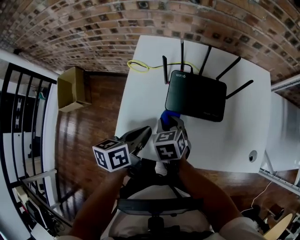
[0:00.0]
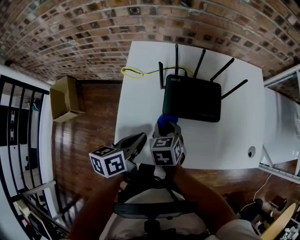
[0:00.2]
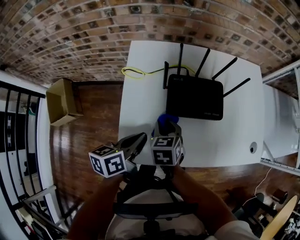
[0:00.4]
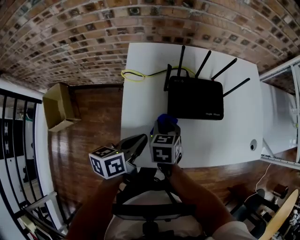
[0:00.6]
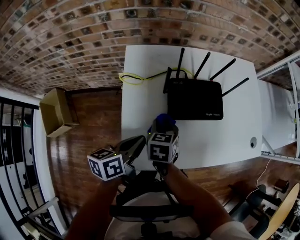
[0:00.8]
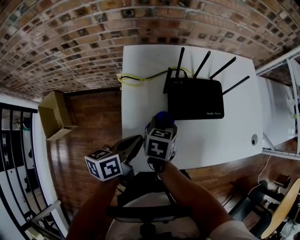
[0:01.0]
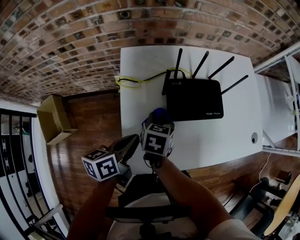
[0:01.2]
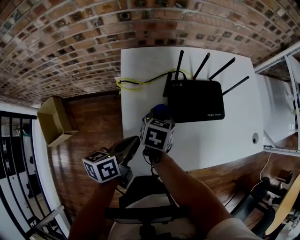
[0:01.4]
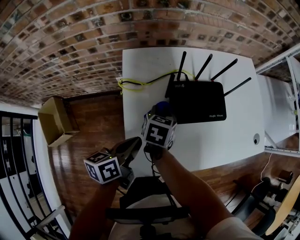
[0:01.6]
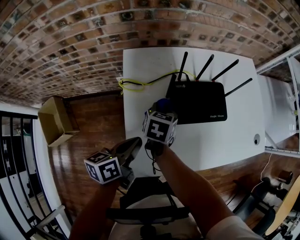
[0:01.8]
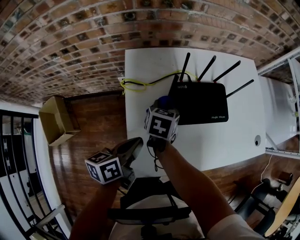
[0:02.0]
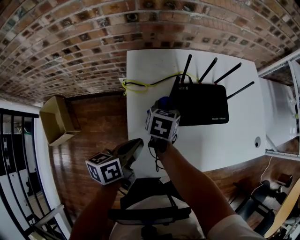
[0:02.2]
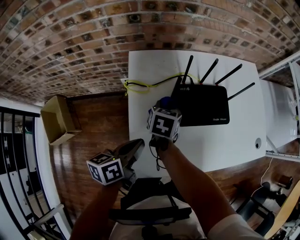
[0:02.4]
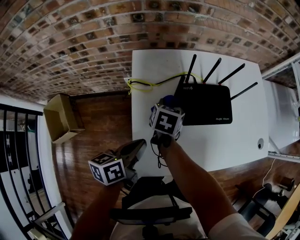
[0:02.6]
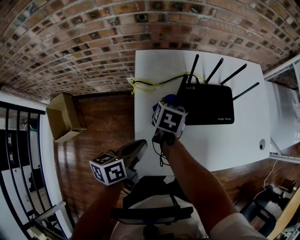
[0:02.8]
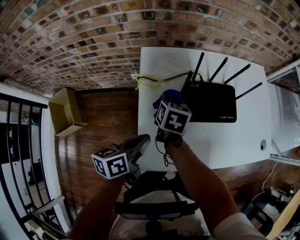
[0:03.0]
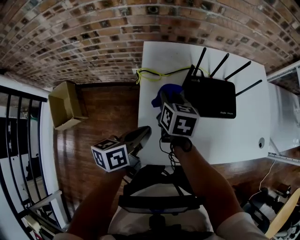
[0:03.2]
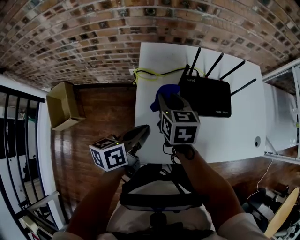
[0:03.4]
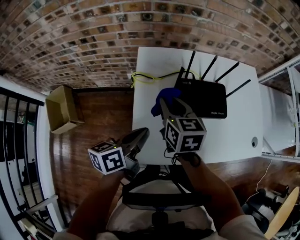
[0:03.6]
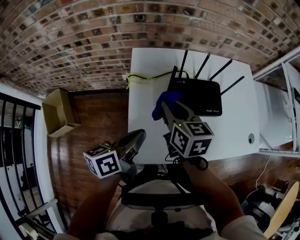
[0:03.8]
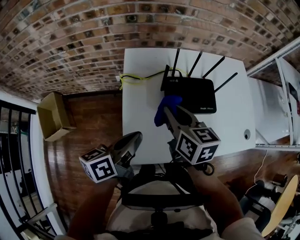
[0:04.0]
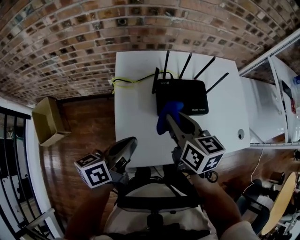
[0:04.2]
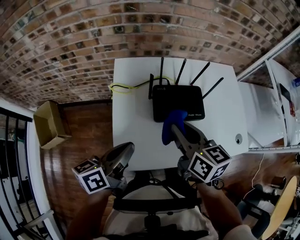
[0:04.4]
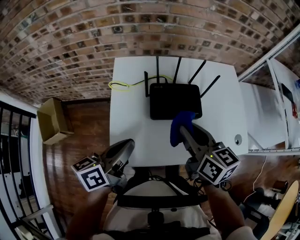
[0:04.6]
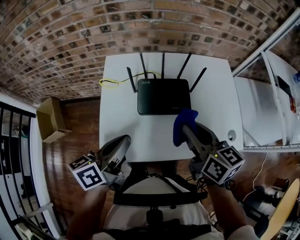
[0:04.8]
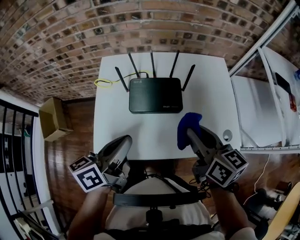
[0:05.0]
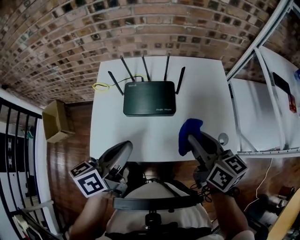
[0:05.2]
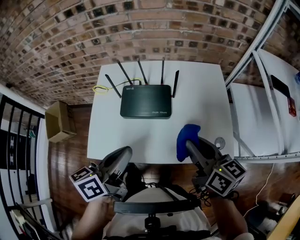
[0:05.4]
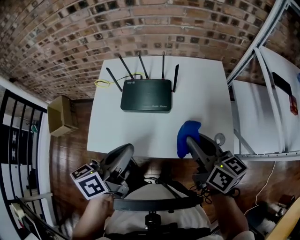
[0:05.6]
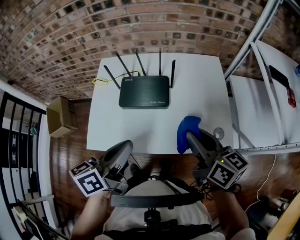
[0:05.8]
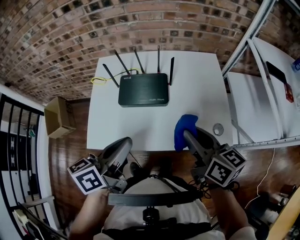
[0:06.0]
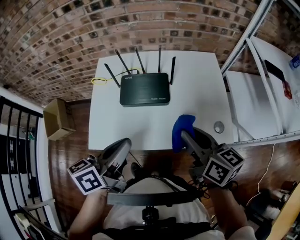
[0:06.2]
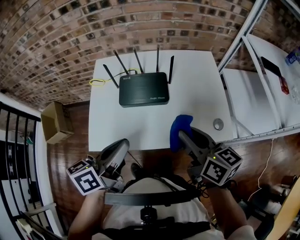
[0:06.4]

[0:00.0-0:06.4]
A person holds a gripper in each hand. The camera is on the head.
0:00.0 to 0:01.6: The right gripper moves roughly 15 cm, and changes its angle by some 50 degrees; the left gripper changes place by some 10 cm.
0:01.6 to 0:03.2: The right gripper heads upward, covering roughly 5 cm, and swivels some 20 degrees.
0:03.2 to 0:04.8: The right gripper goes about 35 cm to the right and upward. The left gripper travels to the right and upward by approximately 20 cm.
0:04.8 to 0:06.4: Both grippers travel together to the right and backward, roughly 15 cm.

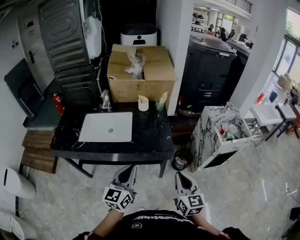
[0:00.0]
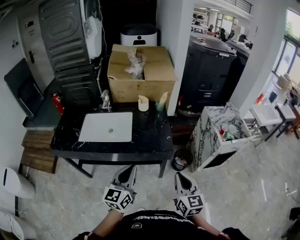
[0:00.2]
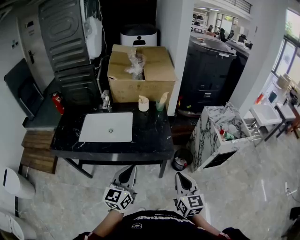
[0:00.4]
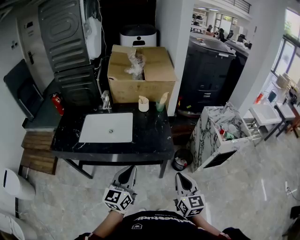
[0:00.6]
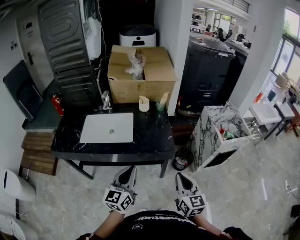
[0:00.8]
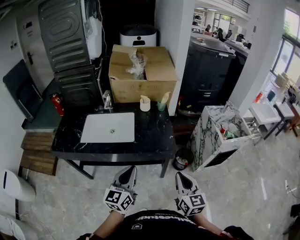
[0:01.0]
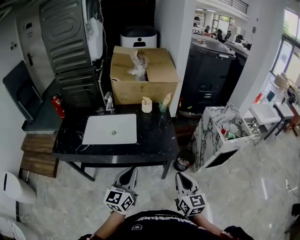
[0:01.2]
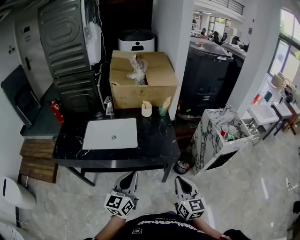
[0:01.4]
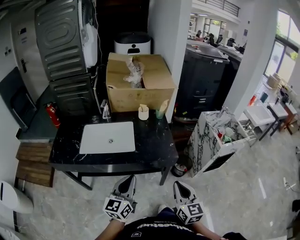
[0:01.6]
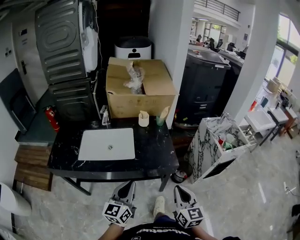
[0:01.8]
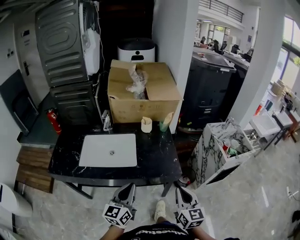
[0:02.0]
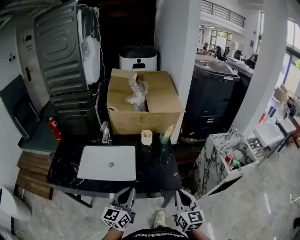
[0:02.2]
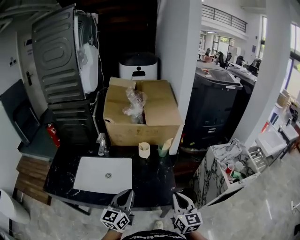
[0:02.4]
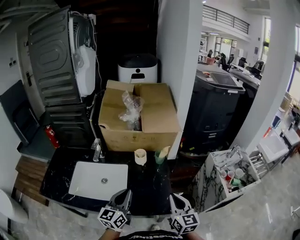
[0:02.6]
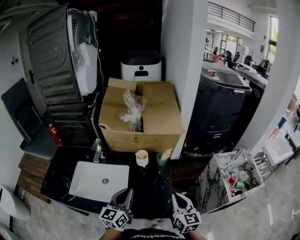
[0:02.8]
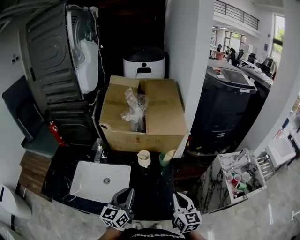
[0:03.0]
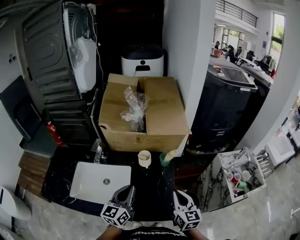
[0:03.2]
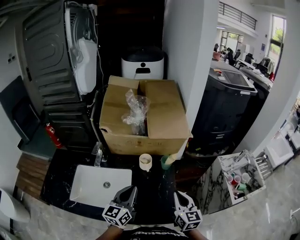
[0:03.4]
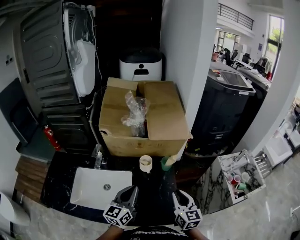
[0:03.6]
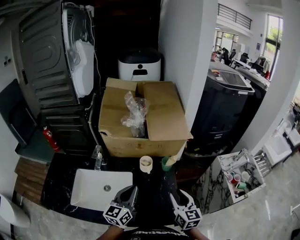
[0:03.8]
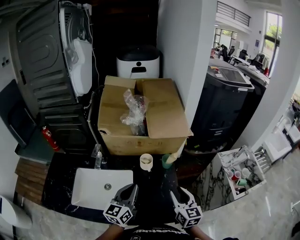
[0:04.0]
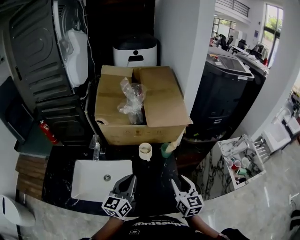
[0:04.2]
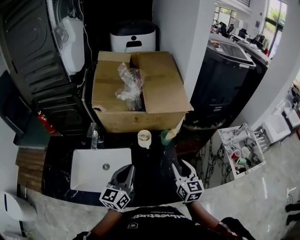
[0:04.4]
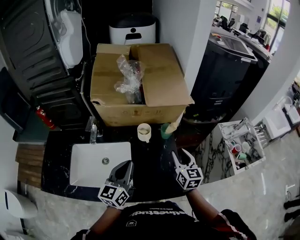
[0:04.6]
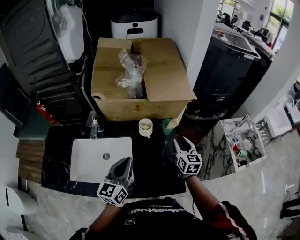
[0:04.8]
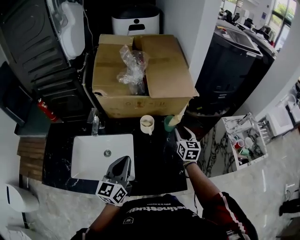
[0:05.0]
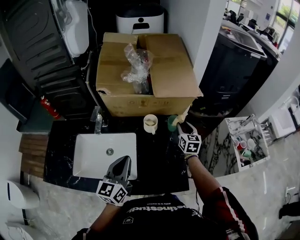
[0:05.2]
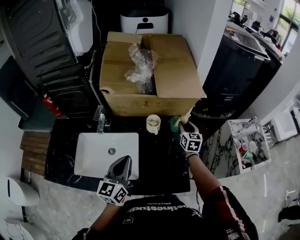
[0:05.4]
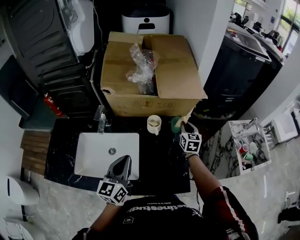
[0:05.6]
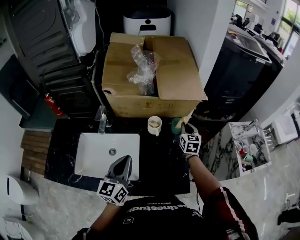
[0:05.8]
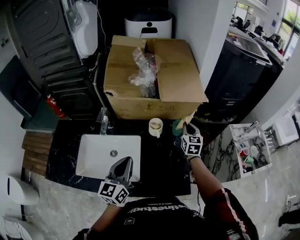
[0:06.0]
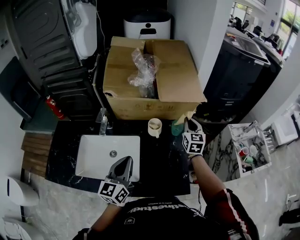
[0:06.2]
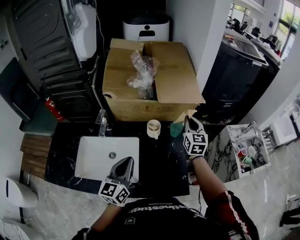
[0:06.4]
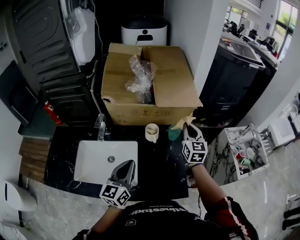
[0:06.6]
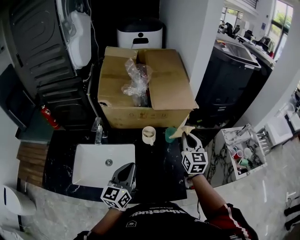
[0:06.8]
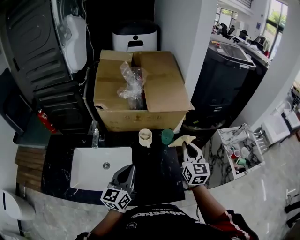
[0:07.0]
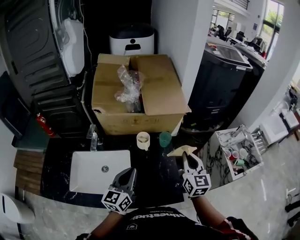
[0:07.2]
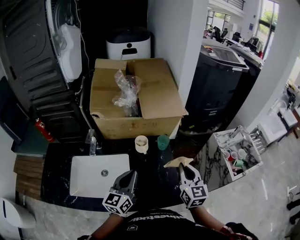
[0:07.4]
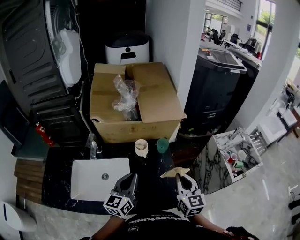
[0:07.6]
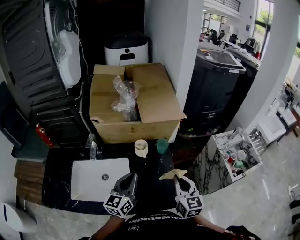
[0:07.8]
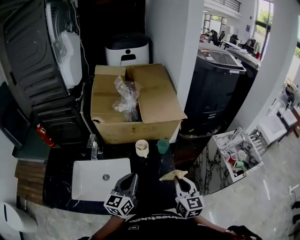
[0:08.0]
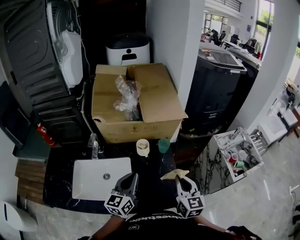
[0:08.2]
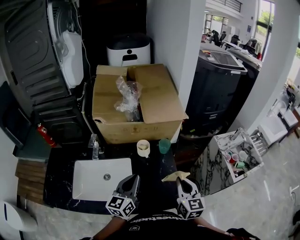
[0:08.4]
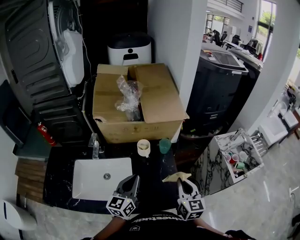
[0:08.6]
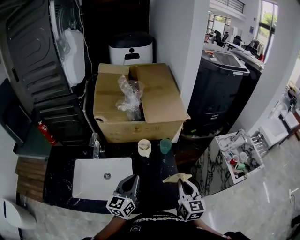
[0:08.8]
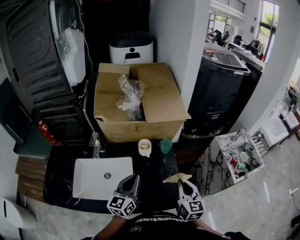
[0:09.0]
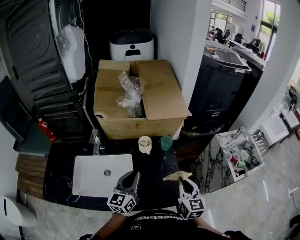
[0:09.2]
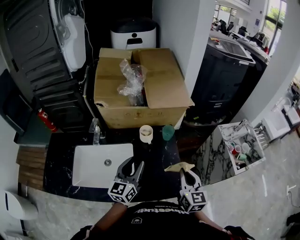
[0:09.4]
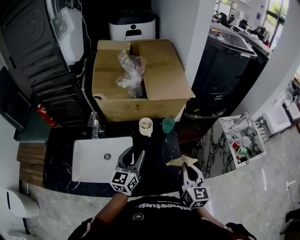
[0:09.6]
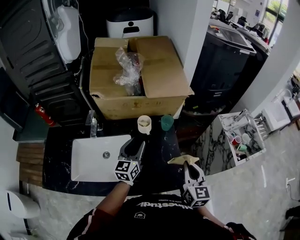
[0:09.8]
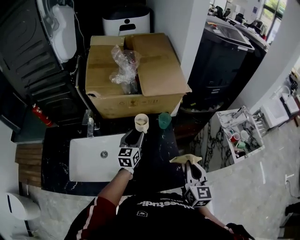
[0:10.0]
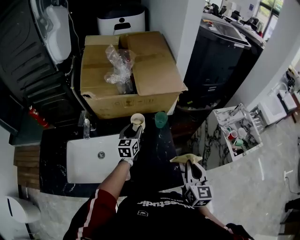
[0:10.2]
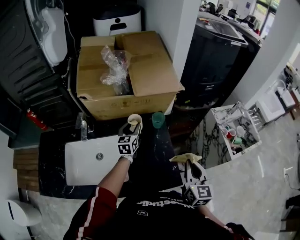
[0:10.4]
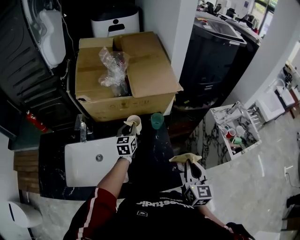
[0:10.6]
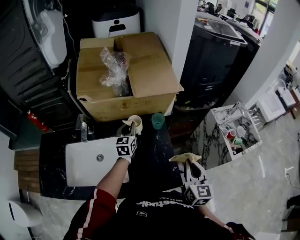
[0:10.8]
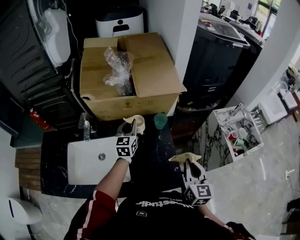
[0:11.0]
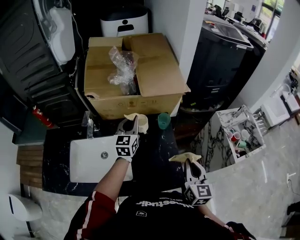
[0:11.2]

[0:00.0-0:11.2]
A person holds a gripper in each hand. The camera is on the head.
0:00.0 to 0:01.6: The two grippers go roughly 5 cm to the left.
0:01.6 to 0:03.2: The grippers both shift forward by about 35 cm.
0:03.2 to 0:04.8: The right gripper goes about 15 cm forward and downward, and opens its fingers.
0:04.8 to 0:06.4: The right gripper shifts approximately 10 cm upward and forward, and closes.
0:06.4 to 0:08.0: The left gripper moves to the right, approximately 5 cm. The right gripper moves backward, roughly 25 cm.
0:08.0 to 0:09.6: The left gripper opens its fingers.
0:09.6 to 0:11.2: The left gripper moves forward, approximately 15 cm, and closes its fingers.

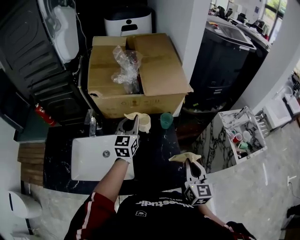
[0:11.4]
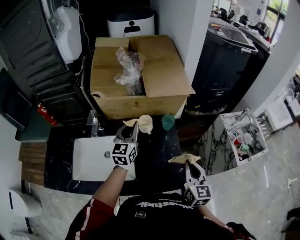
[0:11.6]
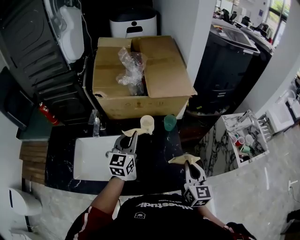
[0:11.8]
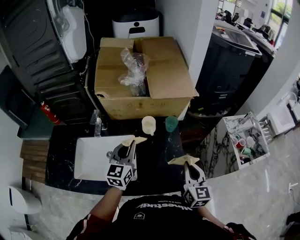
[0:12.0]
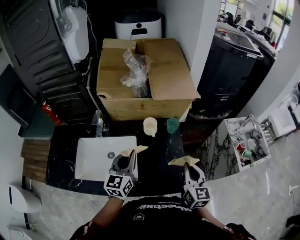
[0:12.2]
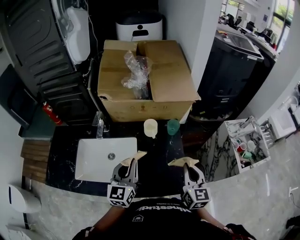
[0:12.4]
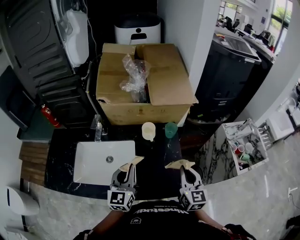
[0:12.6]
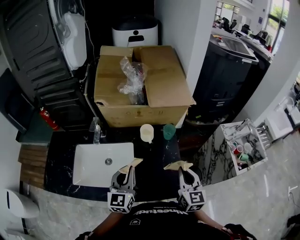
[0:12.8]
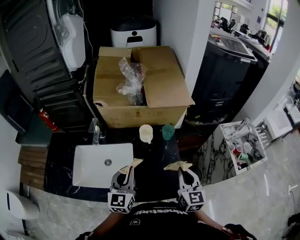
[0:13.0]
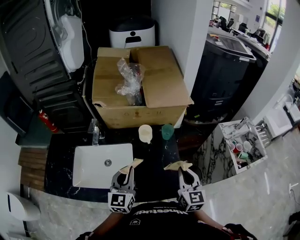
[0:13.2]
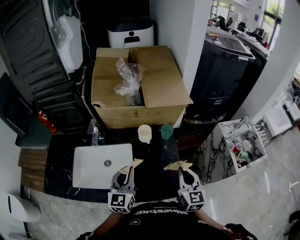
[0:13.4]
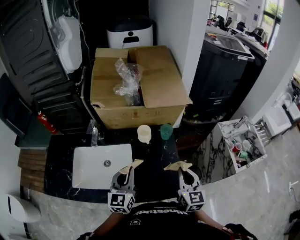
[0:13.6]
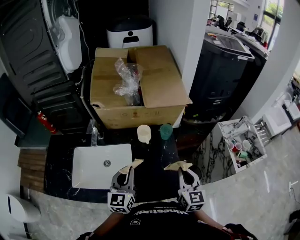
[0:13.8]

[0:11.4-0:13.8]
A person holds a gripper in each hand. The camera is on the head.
0:11.4 to 0:12.6: The left gripper is displaced backward by approximately 20 cm.
0:12.6 to 0:13.8: The grippers move only a little.

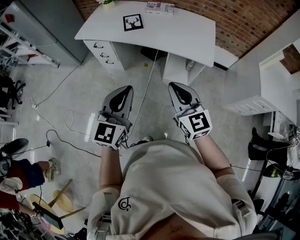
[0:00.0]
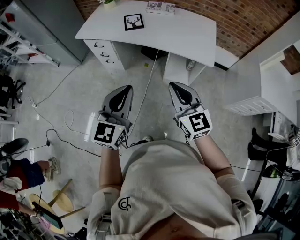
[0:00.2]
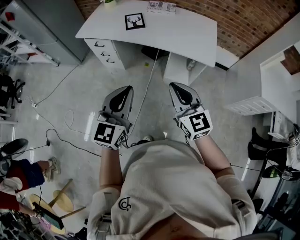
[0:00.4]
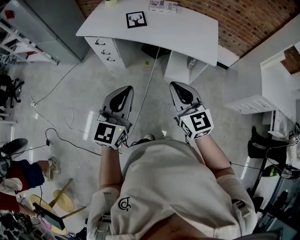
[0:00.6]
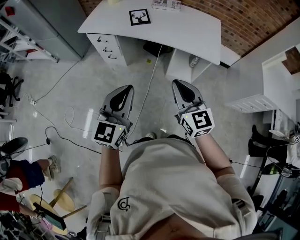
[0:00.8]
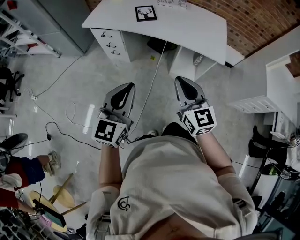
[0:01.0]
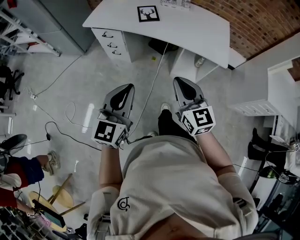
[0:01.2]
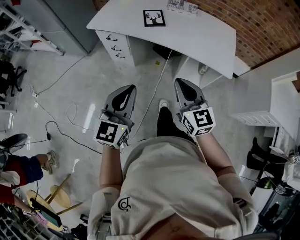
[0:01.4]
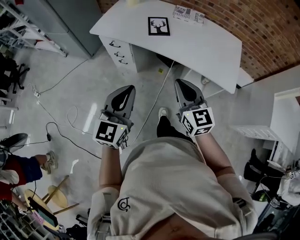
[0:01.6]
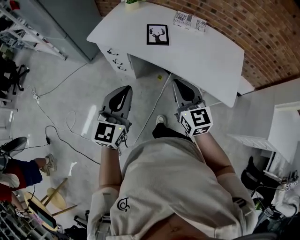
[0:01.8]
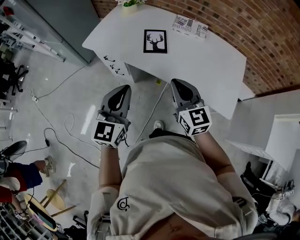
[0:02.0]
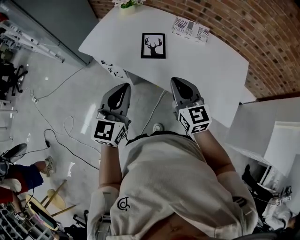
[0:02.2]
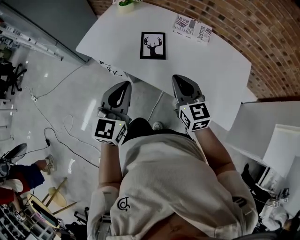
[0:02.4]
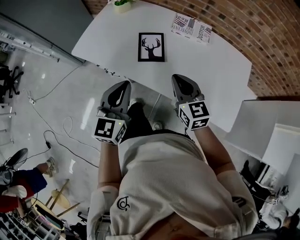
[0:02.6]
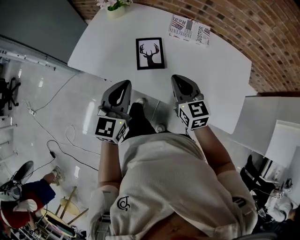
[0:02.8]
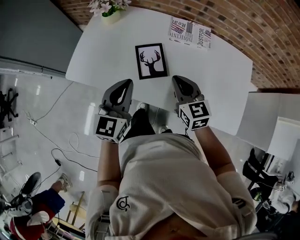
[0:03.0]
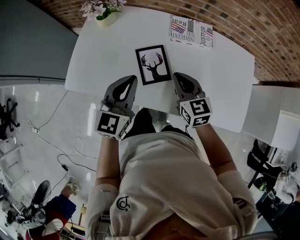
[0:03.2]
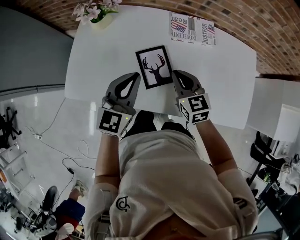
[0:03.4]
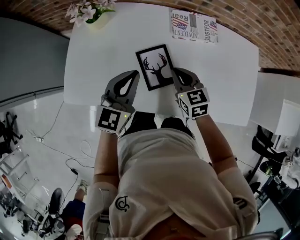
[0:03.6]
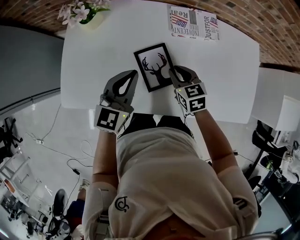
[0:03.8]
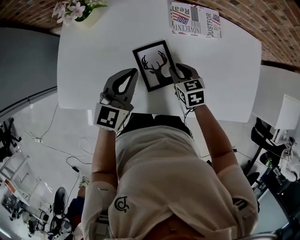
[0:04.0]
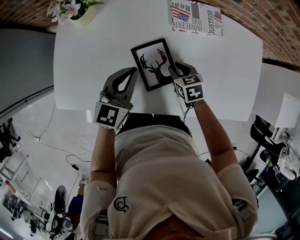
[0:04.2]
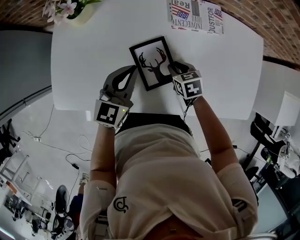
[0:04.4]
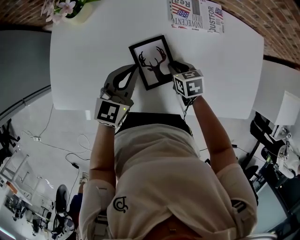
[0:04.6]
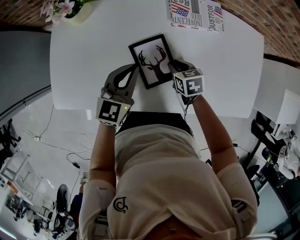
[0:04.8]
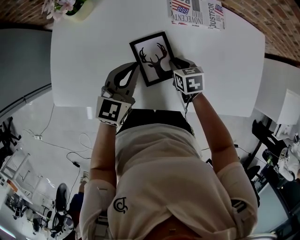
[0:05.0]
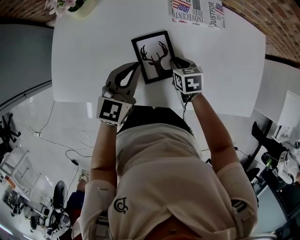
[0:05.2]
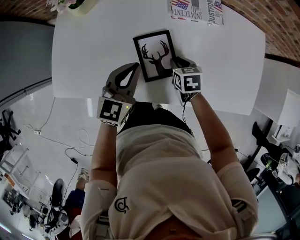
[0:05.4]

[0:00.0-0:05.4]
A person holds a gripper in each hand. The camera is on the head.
0:00.0 to 0:01.4: The two grippers go roughly 10 cm to the left and forward.
0:01.4 to 0:02.8: The pair of grippers is taken forward, approximately 40 cm.
0:02.8 to 0:04.0: The left gripper is displaced forward and downward by approximately 25 cm, and rotates roughly 30 degrees; the right gripper heads downward and forward, covering about 25 cm, angles its fingers downward, by roughly 30 degrees, and opens.
0:04.0 to 0:05.4: The right gripper moves roughly 5 cm, while the left gripper moves approximately 5 cm.
